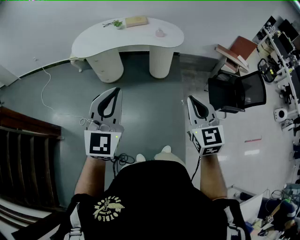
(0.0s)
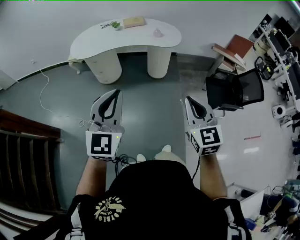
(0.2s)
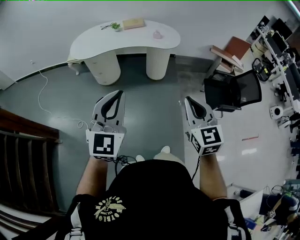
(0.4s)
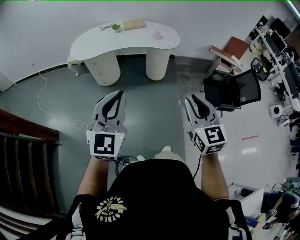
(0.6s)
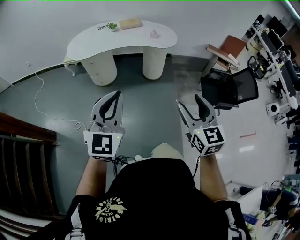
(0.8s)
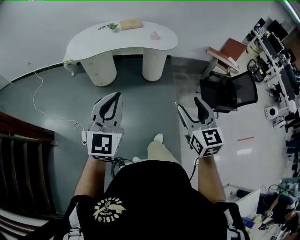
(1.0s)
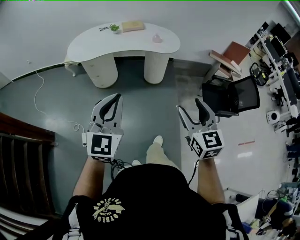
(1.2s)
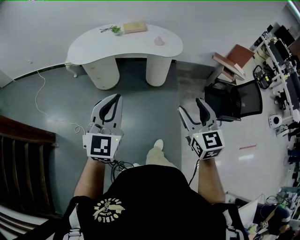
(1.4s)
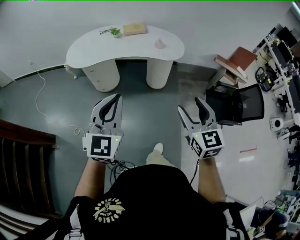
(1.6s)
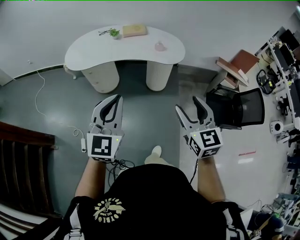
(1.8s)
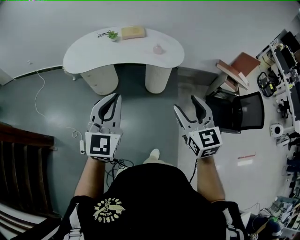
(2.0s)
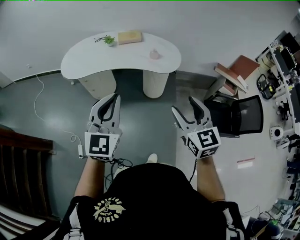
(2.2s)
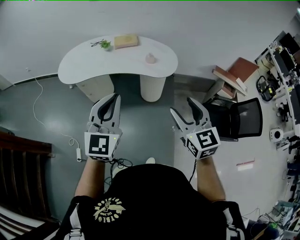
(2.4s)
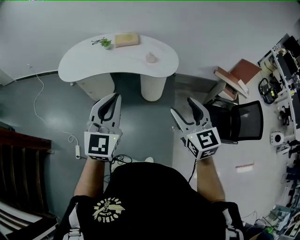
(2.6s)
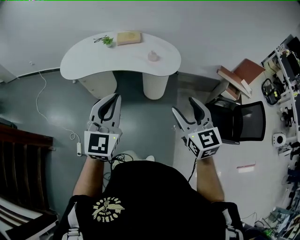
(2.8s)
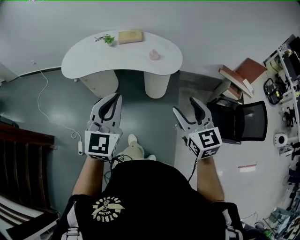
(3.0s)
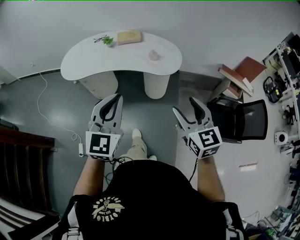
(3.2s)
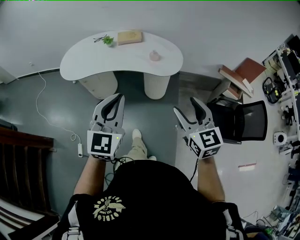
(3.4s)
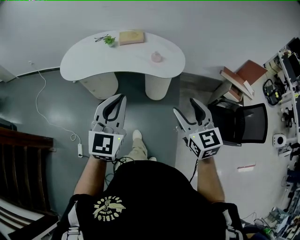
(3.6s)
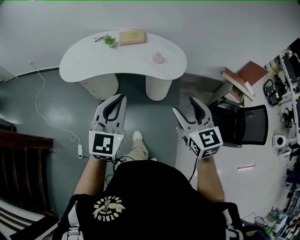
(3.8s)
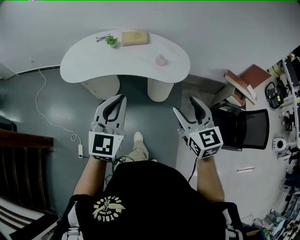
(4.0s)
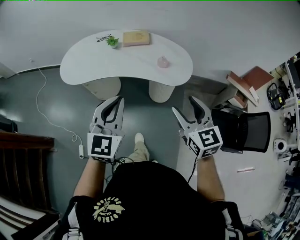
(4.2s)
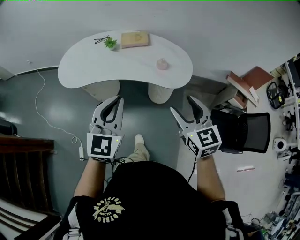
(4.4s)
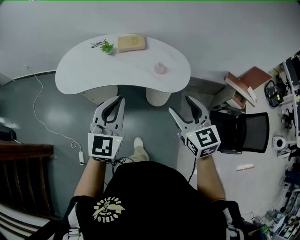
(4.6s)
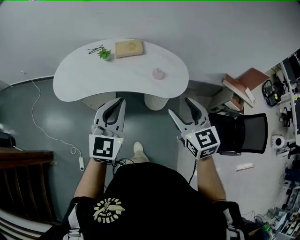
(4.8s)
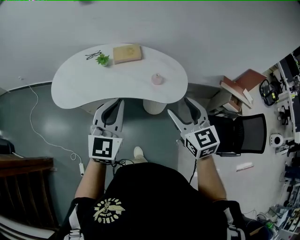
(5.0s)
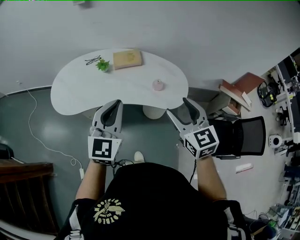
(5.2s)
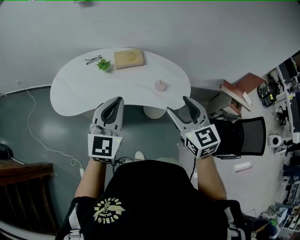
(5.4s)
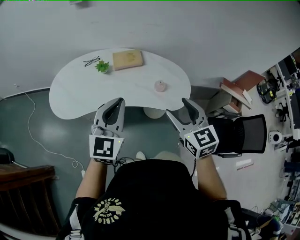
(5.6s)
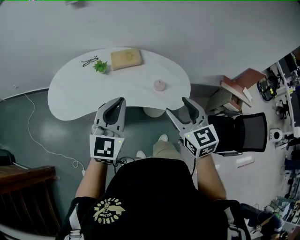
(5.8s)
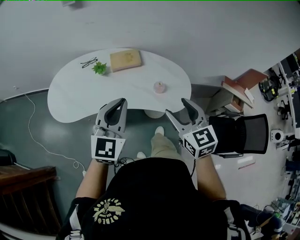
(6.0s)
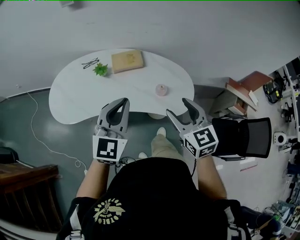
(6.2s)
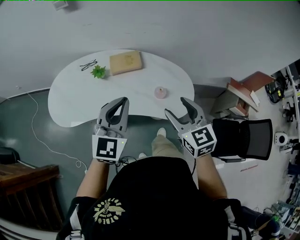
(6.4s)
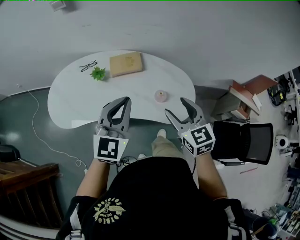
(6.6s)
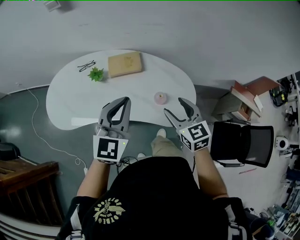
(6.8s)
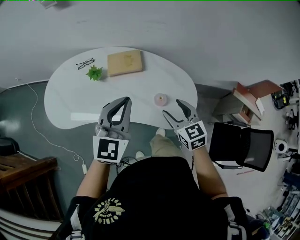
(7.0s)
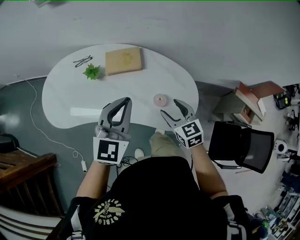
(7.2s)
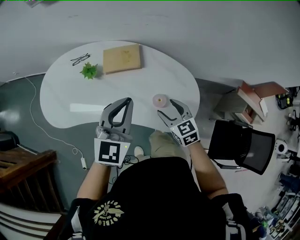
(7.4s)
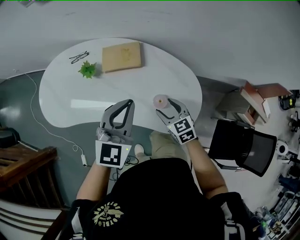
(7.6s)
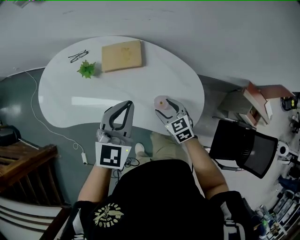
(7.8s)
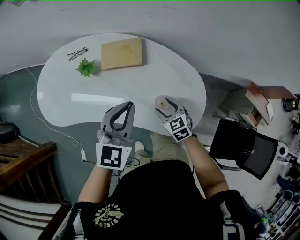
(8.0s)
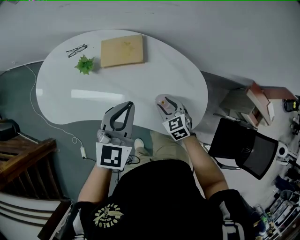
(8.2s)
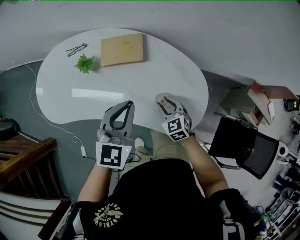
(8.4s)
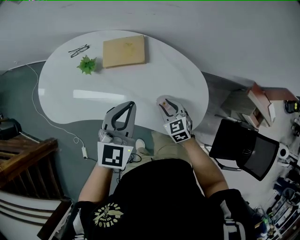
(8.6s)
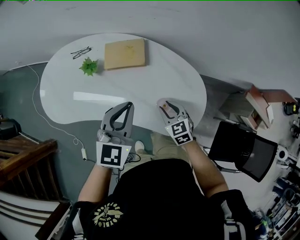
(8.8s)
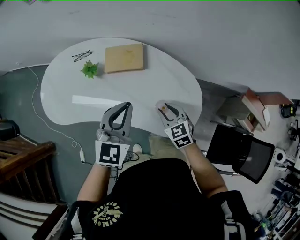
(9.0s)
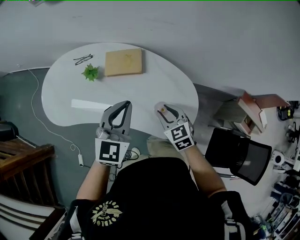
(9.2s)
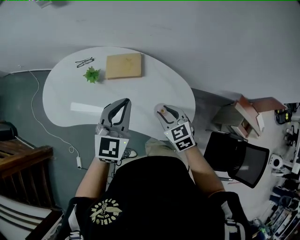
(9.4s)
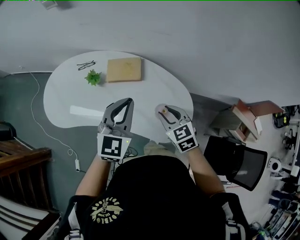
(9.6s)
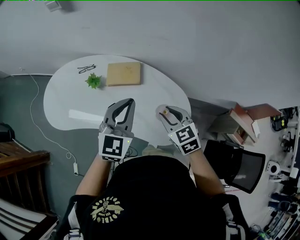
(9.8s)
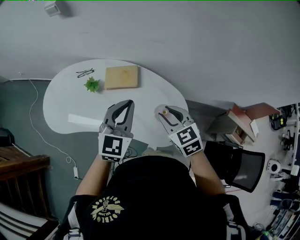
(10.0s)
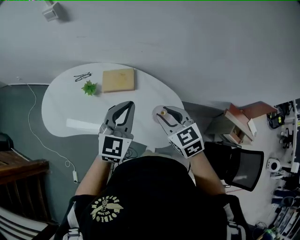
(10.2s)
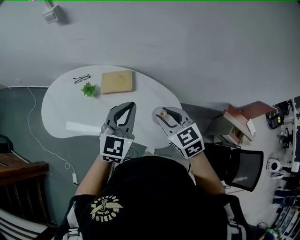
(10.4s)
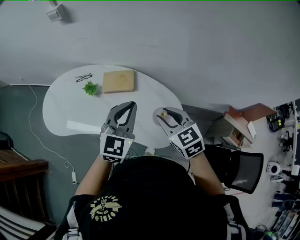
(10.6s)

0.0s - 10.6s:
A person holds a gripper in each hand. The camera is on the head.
0.0s - 1.6s: The two grippers go roughly 15 cm forward. The right gripper opens up.
1.6s - 3.0s: Both grippers move forward and to the right, some 20 cm.
3.0s - 4.6s: Both grippers travel together forward, roughly 20 cm.
4.6s - 6.0s: Both grippers travel together forward, approximately 15 cm.
6.0s - 7.6s: The right gripper is displaced downward and forward by approximately 35 cm, and turns by roughly 20 degrees. Meanwhile the left gripper heads forward, to the right and downward, covering about 25 cm.
7.6s - 9.0s: The right gripper goes downward and returns, roughly 5 cm each way, and closes its fingers.
9.0s - 10.6s: The right gripper heads upward, covering approximately 20 cm. The left gripper travels upward and to the right by approximately 10 cm.

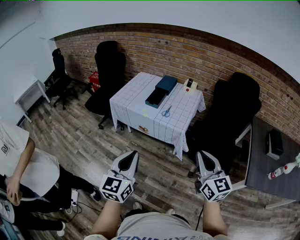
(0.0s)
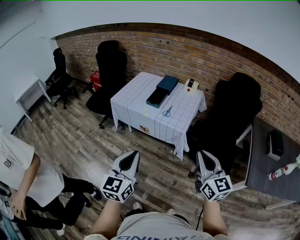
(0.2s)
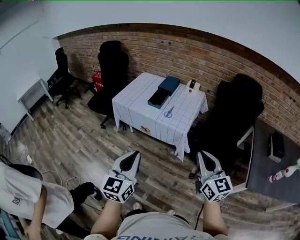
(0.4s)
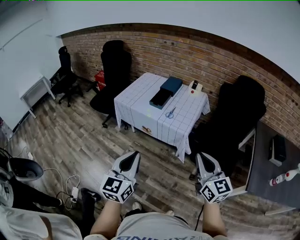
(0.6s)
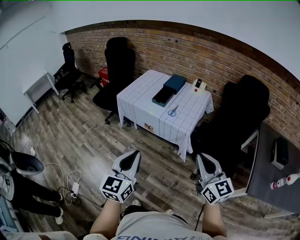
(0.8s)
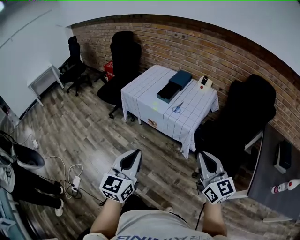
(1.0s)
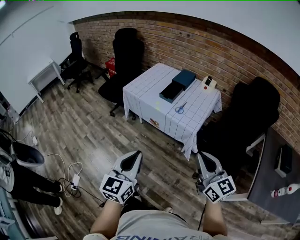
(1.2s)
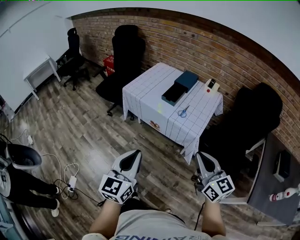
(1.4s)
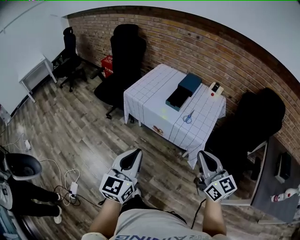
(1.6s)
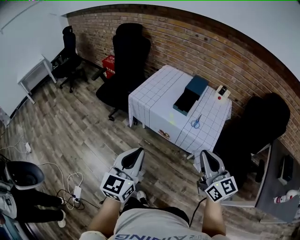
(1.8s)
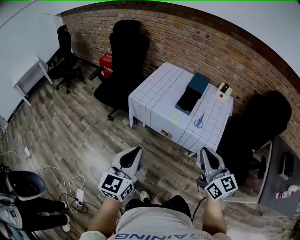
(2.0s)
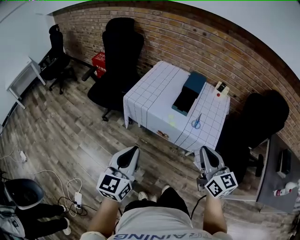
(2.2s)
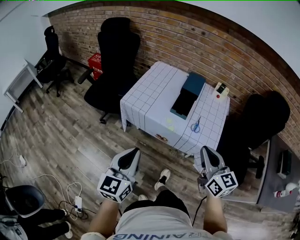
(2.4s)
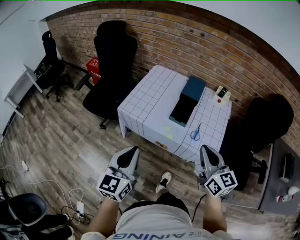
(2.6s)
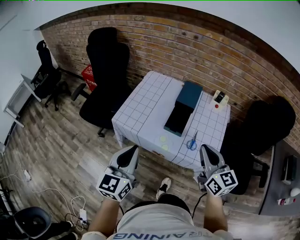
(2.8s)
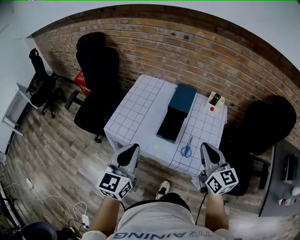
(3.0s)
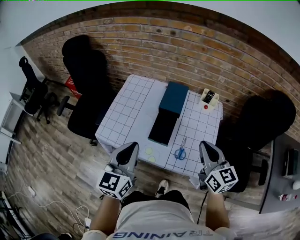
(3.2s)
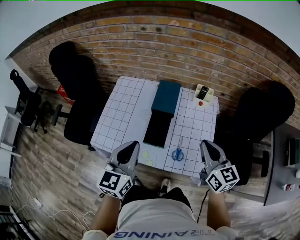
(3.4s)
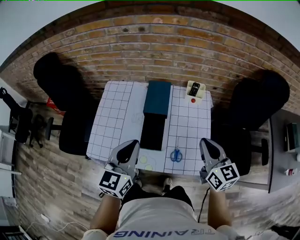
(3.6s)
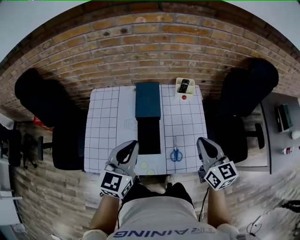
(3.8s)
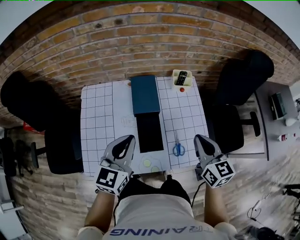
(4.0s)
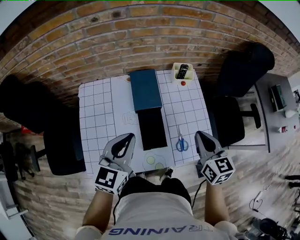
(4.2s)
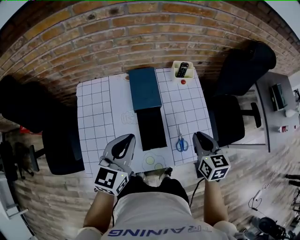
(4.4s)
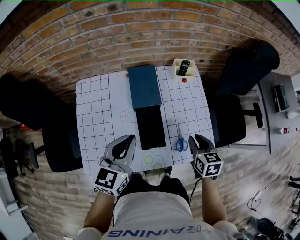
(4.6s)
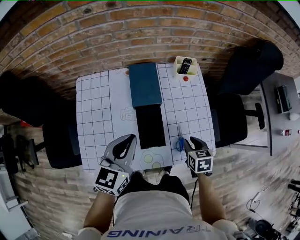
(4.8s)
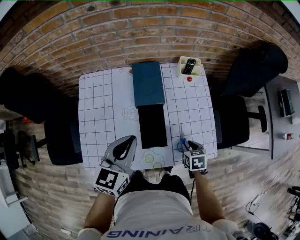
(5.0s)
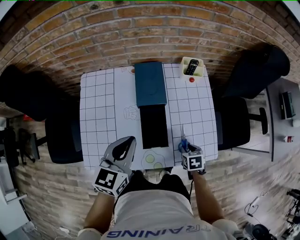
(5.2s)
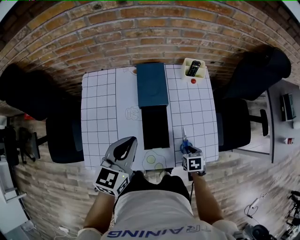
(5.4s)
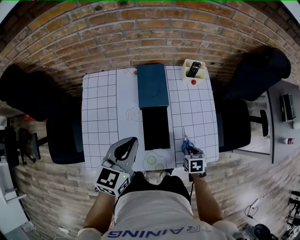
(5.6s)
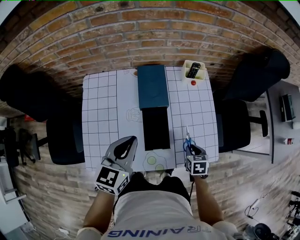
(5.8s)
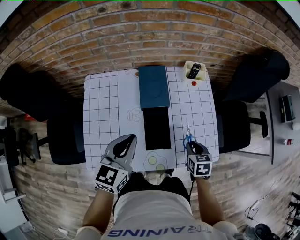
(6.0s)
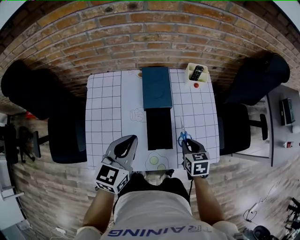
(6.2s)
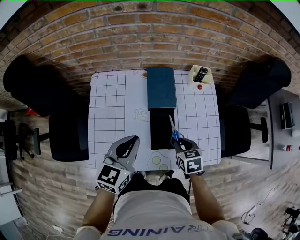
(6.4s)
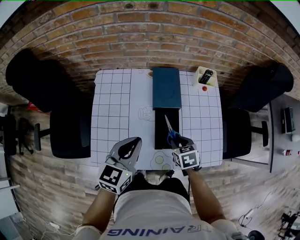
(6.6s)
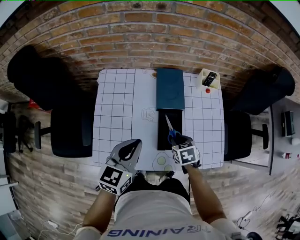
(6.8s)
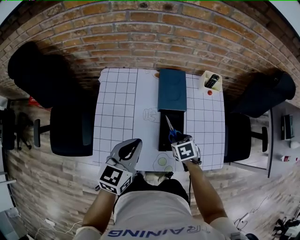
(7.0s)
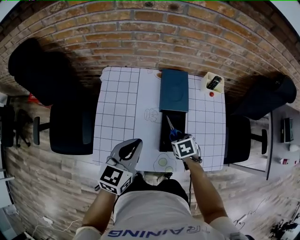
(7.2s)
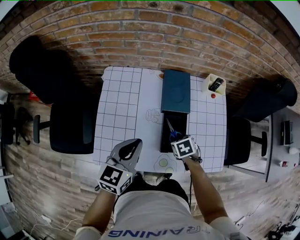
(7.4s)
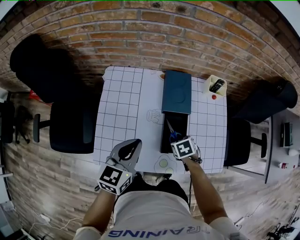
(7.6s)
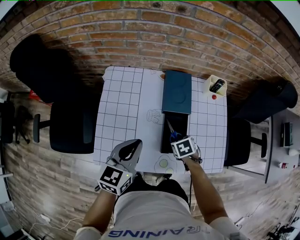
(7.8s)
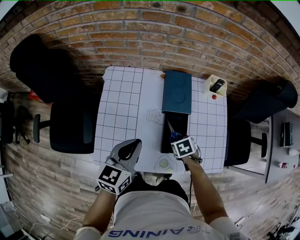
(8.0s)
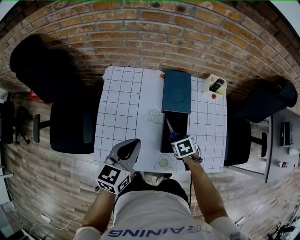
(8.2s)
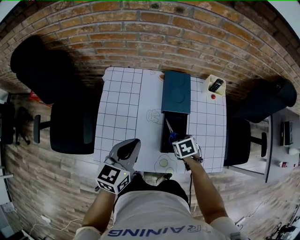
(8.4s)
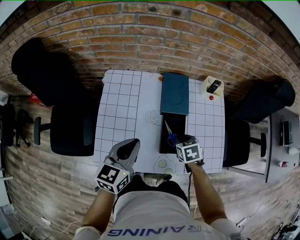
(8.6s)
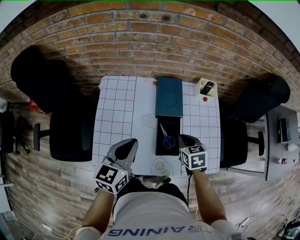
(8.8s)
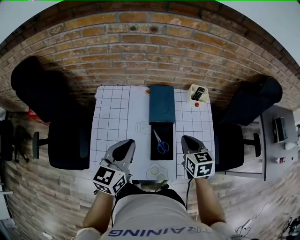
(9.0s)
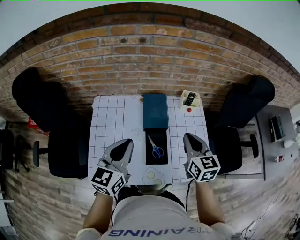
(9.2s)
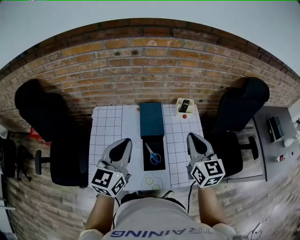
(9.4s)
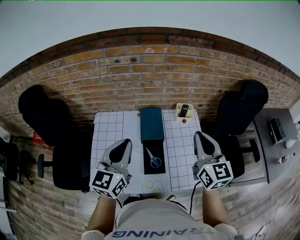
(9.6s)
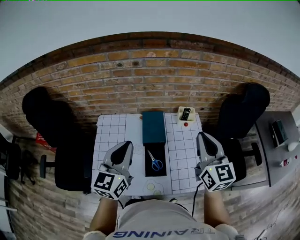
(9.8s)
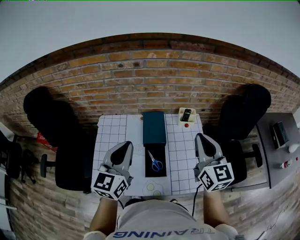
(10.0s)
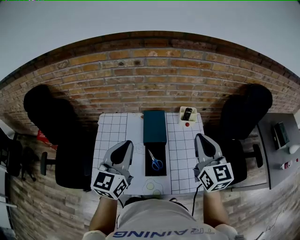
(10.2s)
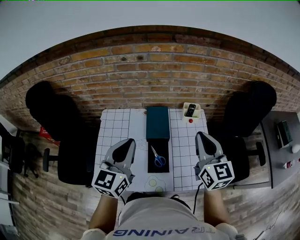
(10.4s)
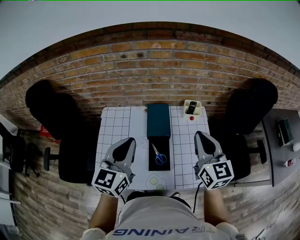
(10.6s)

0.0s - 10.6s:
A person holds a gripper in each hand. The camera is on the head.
0.0s - 1.6s: The two grippers go roughly 15 cm forward and to the left.
1.6s - 3.0s: Both grippers move forward, some 35 cm.
3.0s - 4.6s: The left gripper ends up some 25 cm from where it was, and swivels approximately 40 degrees, while the right gripper travels downward by roughly 20 cm, tilts its fingers some 40 degrees downward, and opens its fingers.
4.6s - 6.0s: The right gripper heads downward, covering approximately 5 cm.
6.0s - 7.6s: The right gripper shifts by approximately 15 cm, and rotates approximately 30 degrees; the left gripper changes place by some 10 cm.
7.6s - 9.0s: The right gripper heads upward, covering some 20 cm, and points its fingers some 40 degrees further upward. Meanwhile the left gripper heads upward, covering approximately 5 cm.
9.0s - 10.6s: The right gripper shifts approximately 20 cm upward, and points its fingers some 30 degrees further upward; the left gripper goes about 10 cm upward.

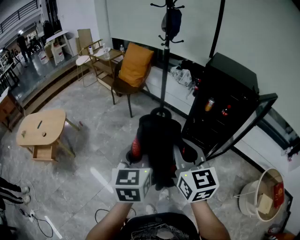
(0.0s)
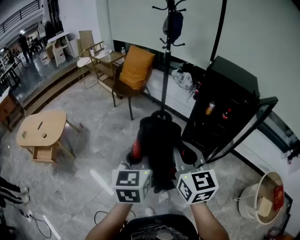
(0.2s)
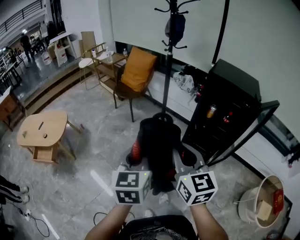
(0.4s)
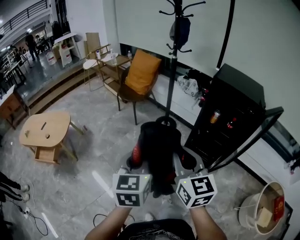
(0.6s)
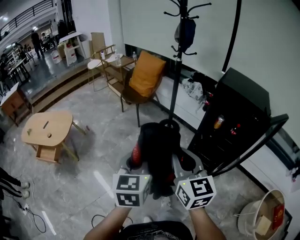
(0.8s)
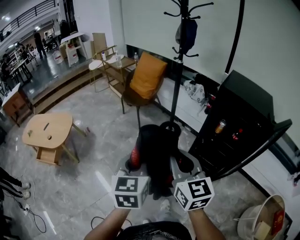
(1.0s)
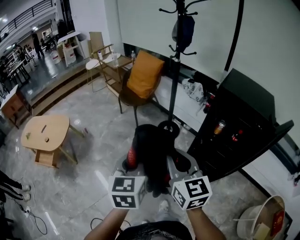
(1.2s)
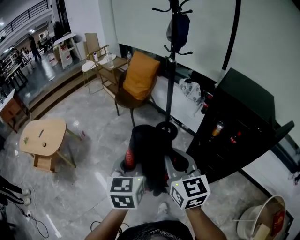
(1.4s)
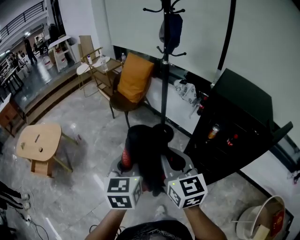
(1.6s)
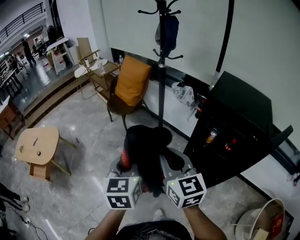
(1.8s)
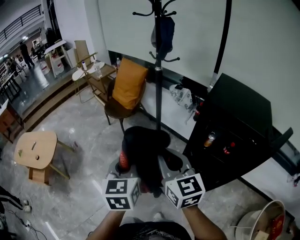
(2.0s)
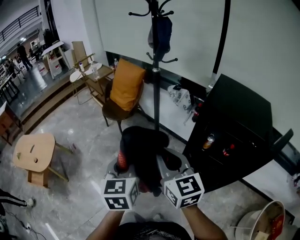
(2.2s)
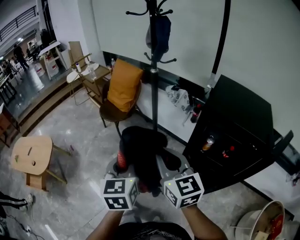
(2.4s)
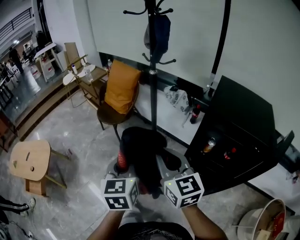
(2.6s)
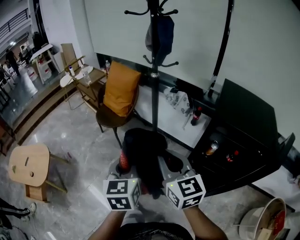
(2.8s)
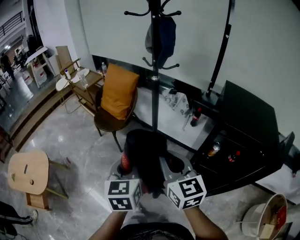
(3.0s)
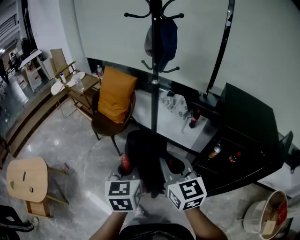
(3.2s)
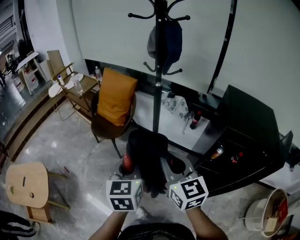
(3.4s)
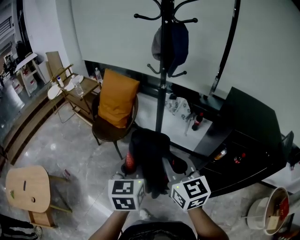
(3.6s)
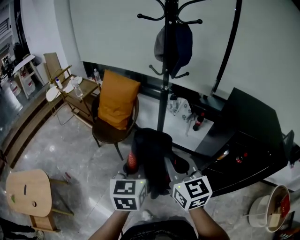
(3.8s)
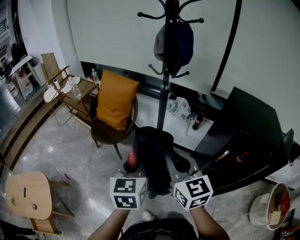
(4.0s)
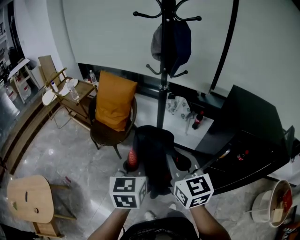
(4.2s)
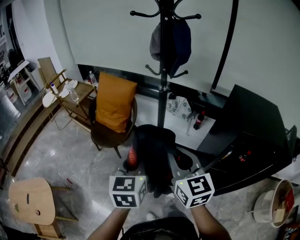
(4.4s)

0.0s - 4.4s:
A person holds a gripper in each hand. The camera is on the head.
0.0s - 1.4s: Both grippers move forward, some 15 cm.
1.4s - 3.0s: The grippers both shift forward by about 25 cm.
3.0s - 4.4s: Both grippers move forward and to the left, roughly 15 cm.
